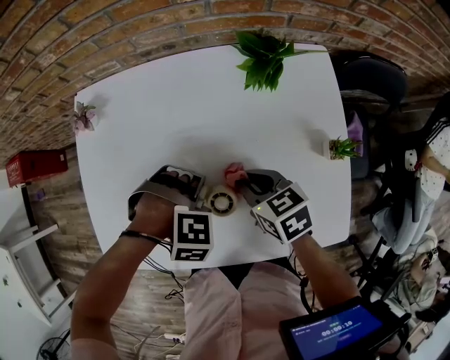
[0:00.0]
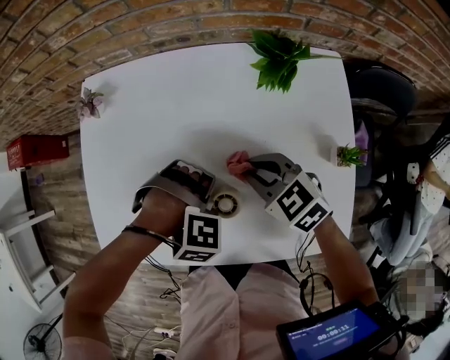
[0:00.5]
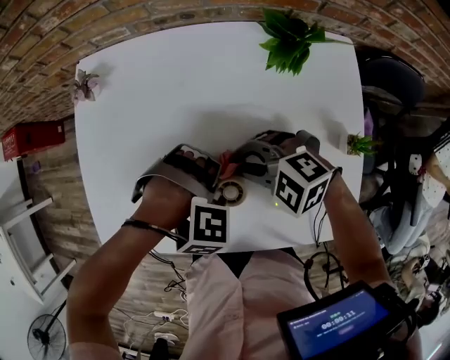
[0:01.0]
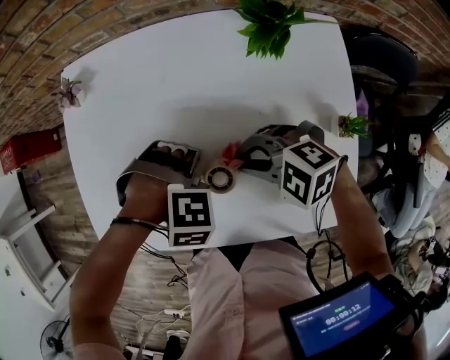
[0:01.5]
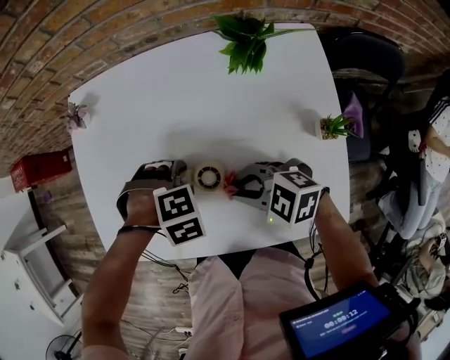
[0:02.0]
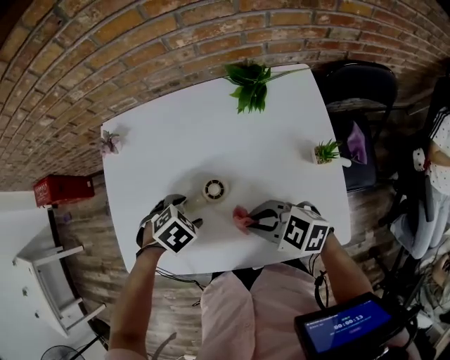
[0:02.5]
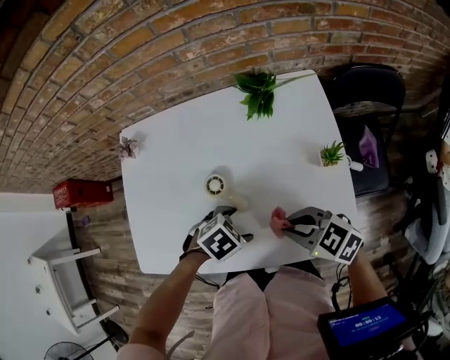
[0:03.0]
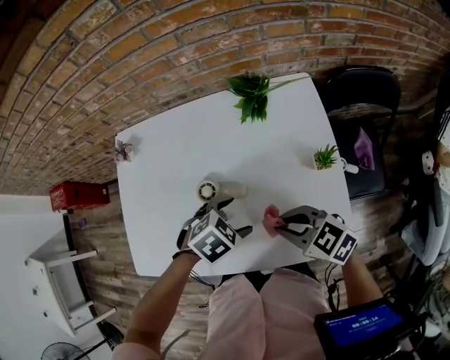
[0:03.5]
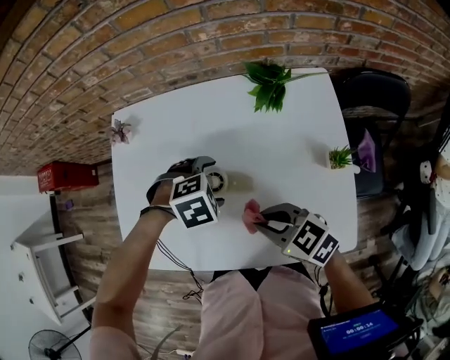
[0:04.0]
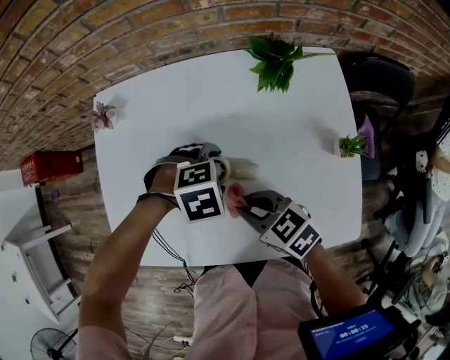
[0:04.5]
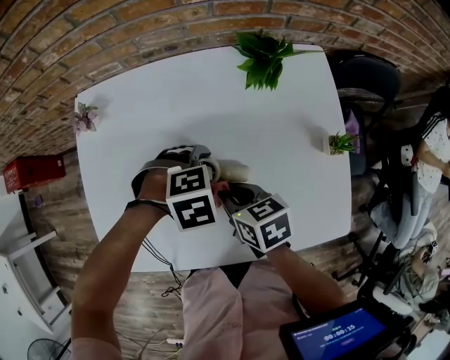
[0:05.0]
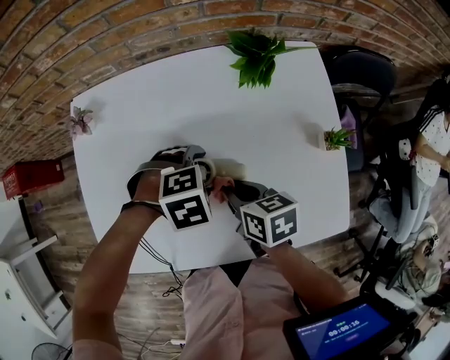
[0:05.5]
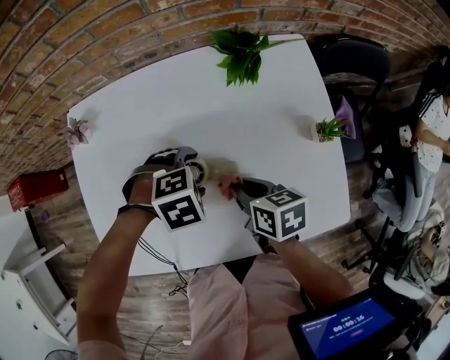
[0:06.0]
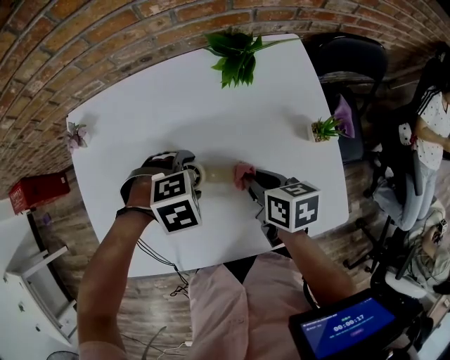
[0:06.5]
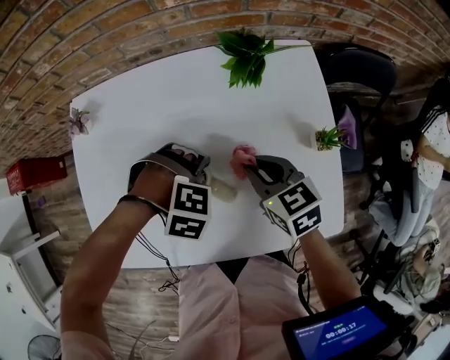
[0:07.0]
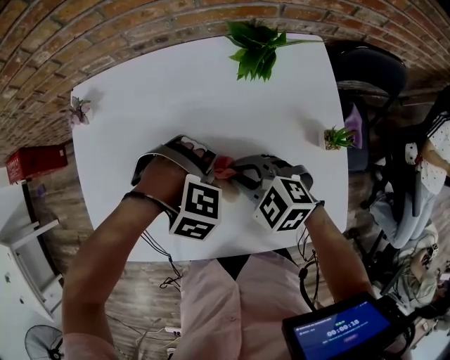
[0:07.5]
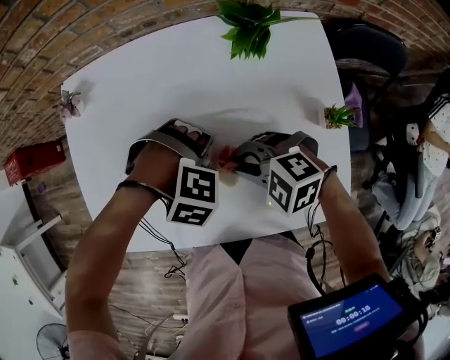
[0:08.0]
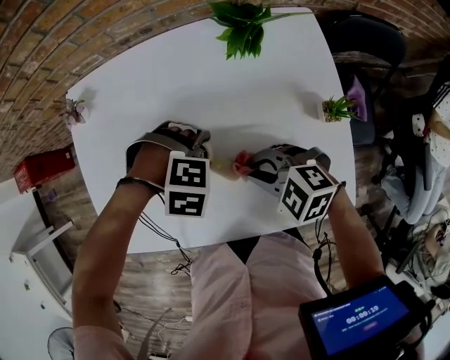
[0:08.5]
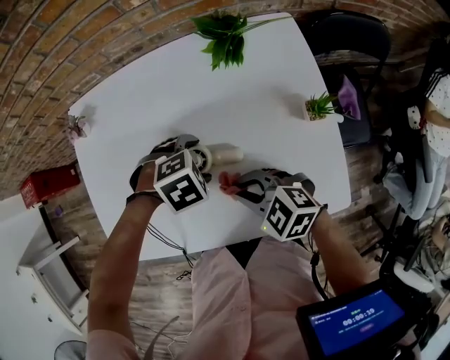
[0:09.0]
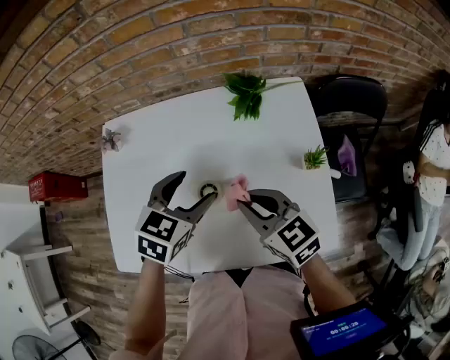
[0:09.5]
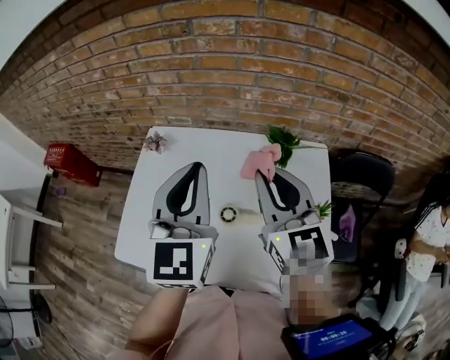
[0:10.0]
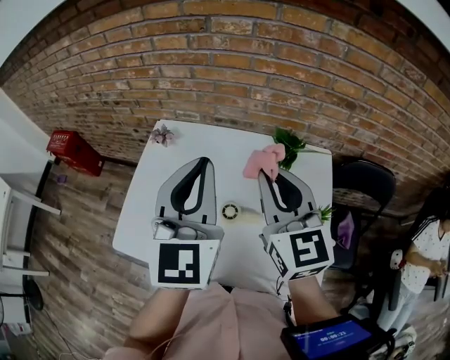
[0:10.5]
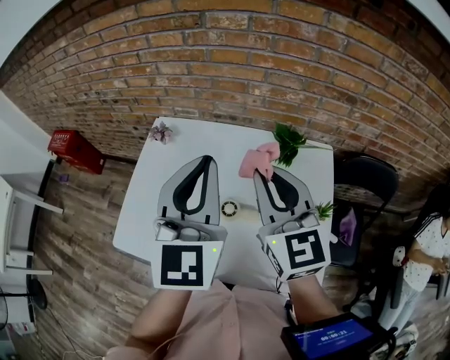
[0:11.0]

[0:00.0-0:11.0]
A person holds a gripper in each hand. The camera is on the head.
0:00.0 to 0:02.0: The right gripper changes place by about 10 cm, and rolls counterclockwise, seen from behind, by some 50 degrees. The left gripper turns by approximately 20 degrees.
0:02.0 to 0:03.5: The right gripper moves some 10 cm, and swivels approximately 30 degrees. Meanwhile the left gripper shifts by some 10 cm, rotates some 40 degrees, and opens up.
0:03.5 to 0:05.5: The left gripper shifts by about 10 cm, and turns by some 30 degrees; the right gripper changes place by approximately 15 cm, and rotates around the line of its fingers by approximately 40 degrees, clockwise from behind.
0:05.5 to 0:07.5: The left gripper rotates some 40 degrees. Meanwhile the right gripper rotates around the line of its fingers by roughly 70 degrees, counterclockwise from behind.
0:07.5 to 0:09.0: The right gripper shifts by approximately 10 cm. The left gripper twists roughly 40 degrees counterclockwise, seen from behind.
0:09.0 to 0:11.0: Both grippers travel together upward, roughly 35 cm. The right gripper angles its fingers upward, by some 40 degrees. The left gripper tips its fingers upward by some 80 degrees, and closes.

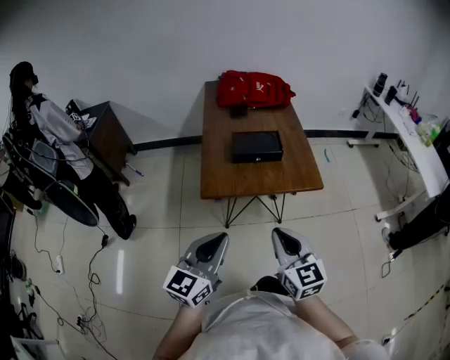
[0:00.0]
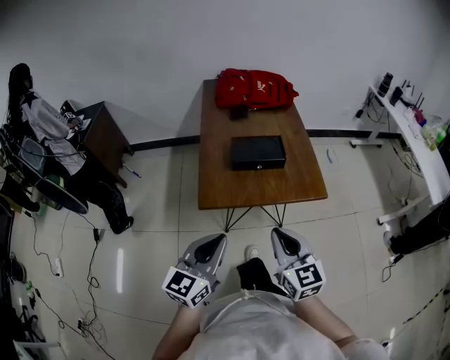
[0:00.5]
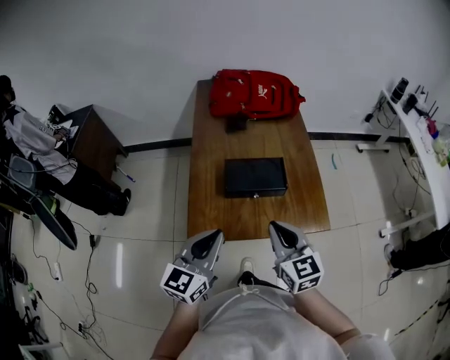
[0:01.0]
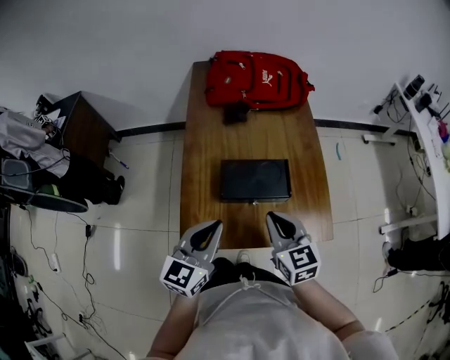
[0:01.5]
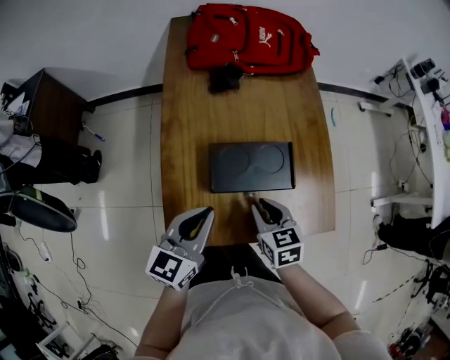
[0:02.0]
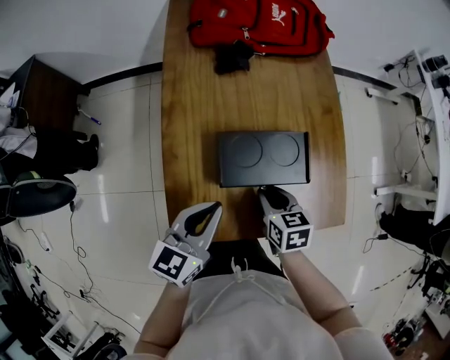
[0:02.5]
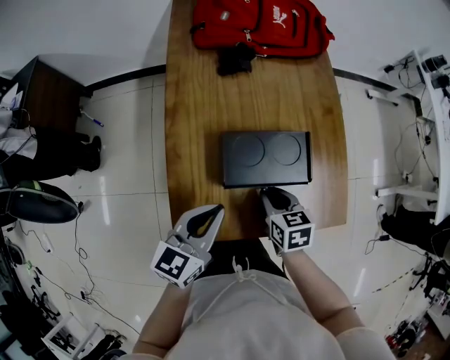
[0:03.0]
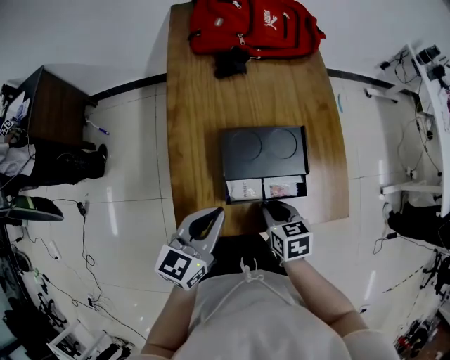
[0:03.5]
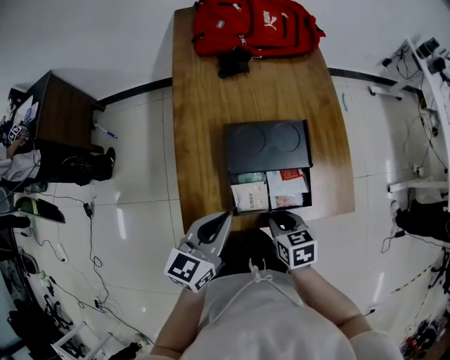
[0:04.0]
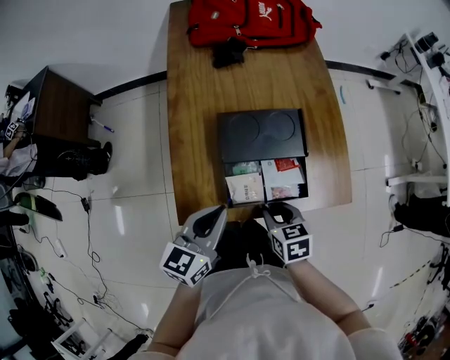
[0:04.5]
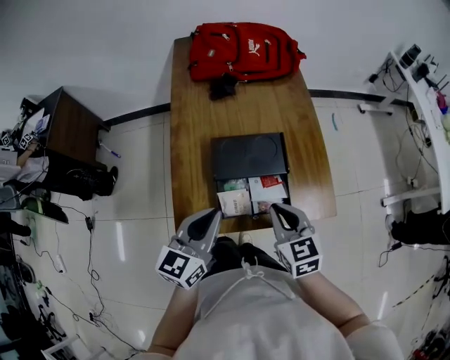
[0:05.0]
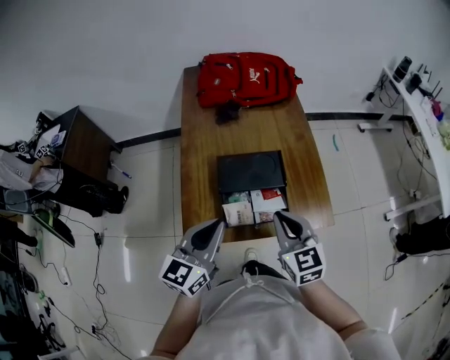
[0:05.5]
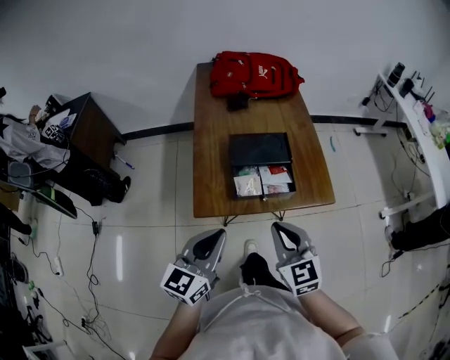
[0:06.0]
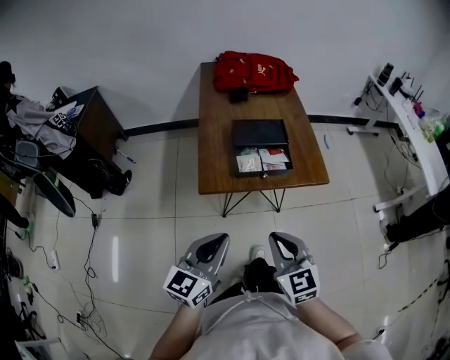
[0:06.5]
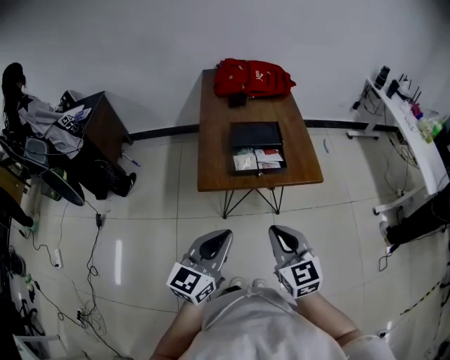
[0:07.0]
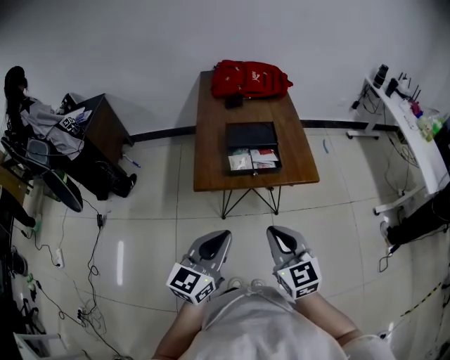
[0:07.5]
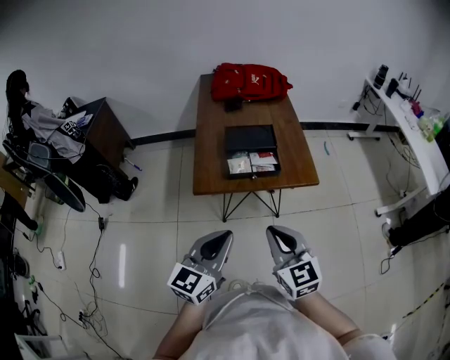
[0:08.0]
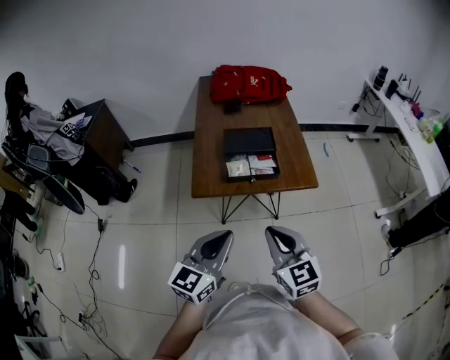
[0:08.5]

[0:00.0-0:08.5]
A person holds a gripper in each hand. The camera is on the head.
0:00.0 to 0:02.0: The right gripper moves forward and downward, some 40 cm, and tips its fingers downward by some 30 degrees; the left gripper travels forward by some 40 cm.
0:02.0 to 0:04.0: The right gripper is displaced backward and downward by approximately 10 cm. Meanwhile the left gripper heads backward, covering roughly 5 cm.
0:04.0 to 0:06.5: The right gripper is displaced backward and upward by approximately 35 cm, and angles its fingers upward, by approximately 30 degrees; the left gripper heads backward, covering roughly 30 cm.
0:06.5 to 0:08.5: The two grippers go approximately 5 cm to the right.

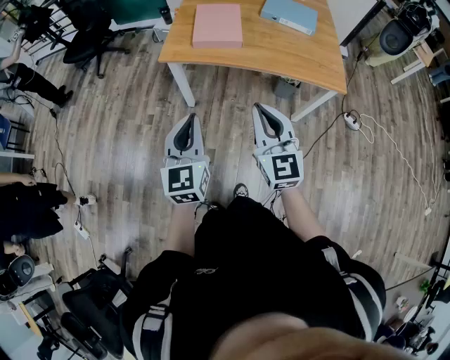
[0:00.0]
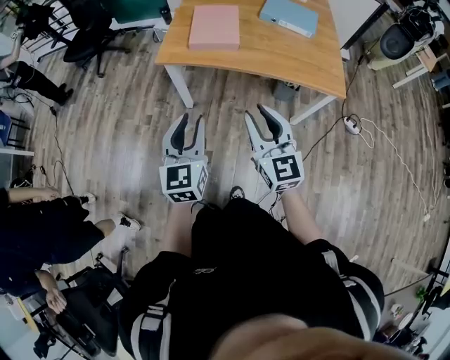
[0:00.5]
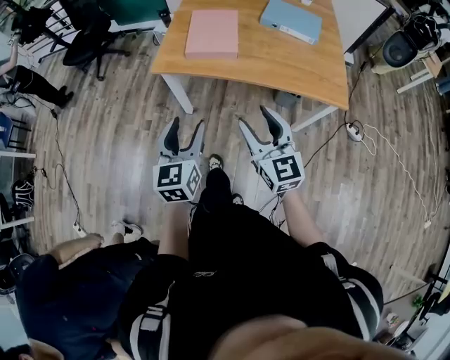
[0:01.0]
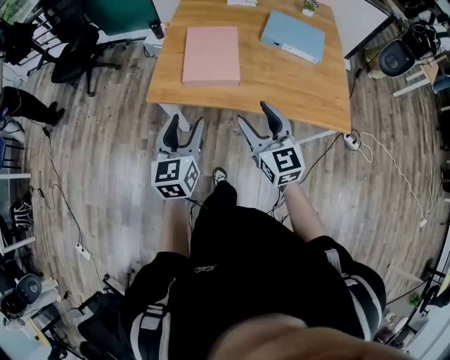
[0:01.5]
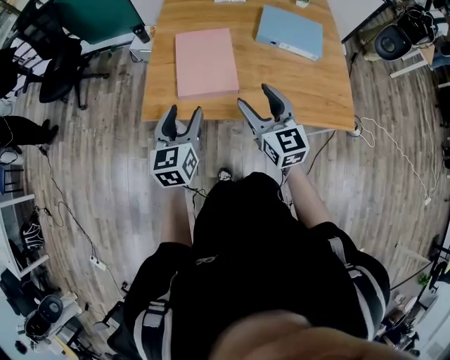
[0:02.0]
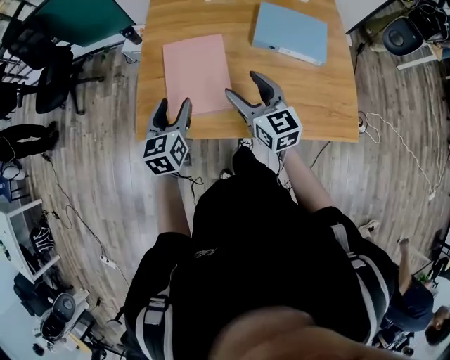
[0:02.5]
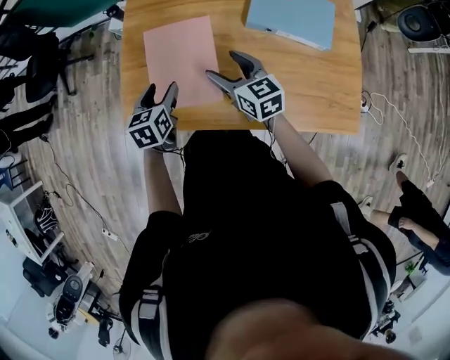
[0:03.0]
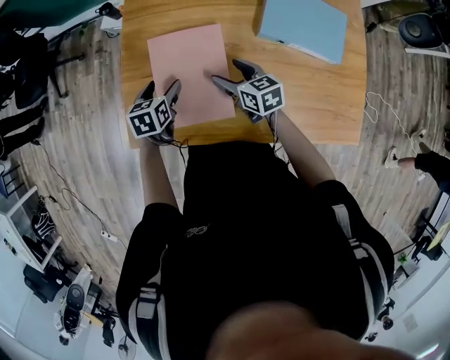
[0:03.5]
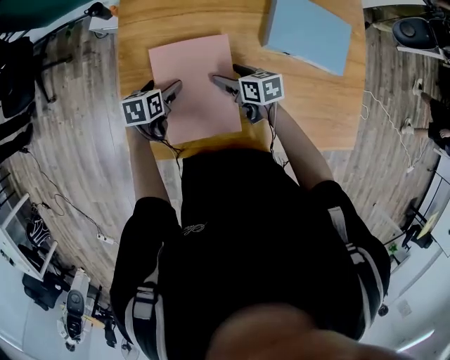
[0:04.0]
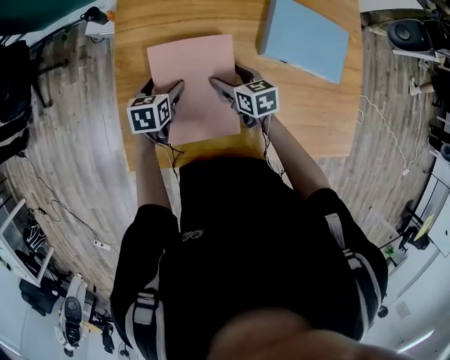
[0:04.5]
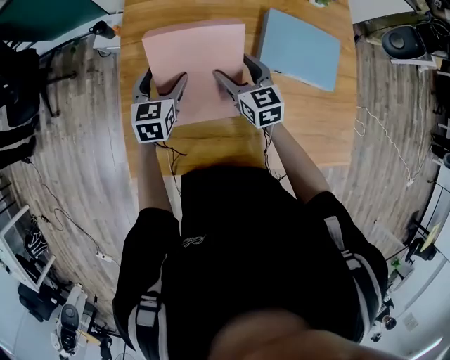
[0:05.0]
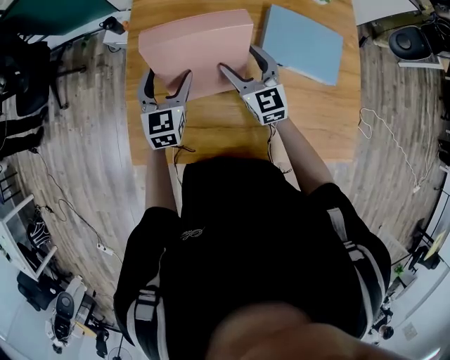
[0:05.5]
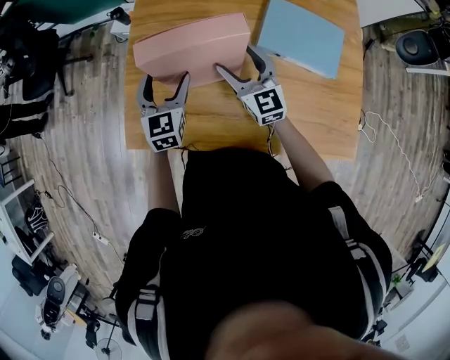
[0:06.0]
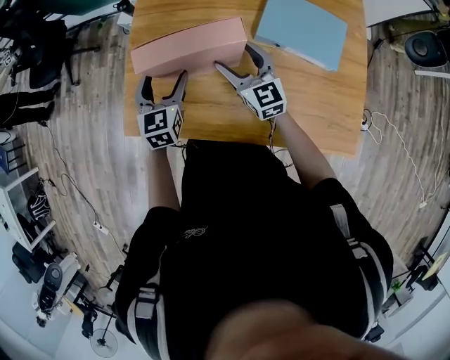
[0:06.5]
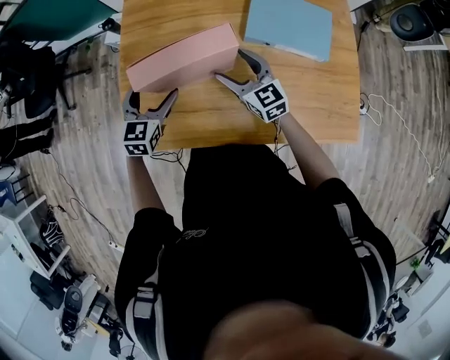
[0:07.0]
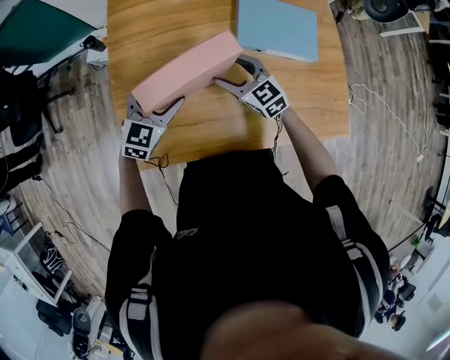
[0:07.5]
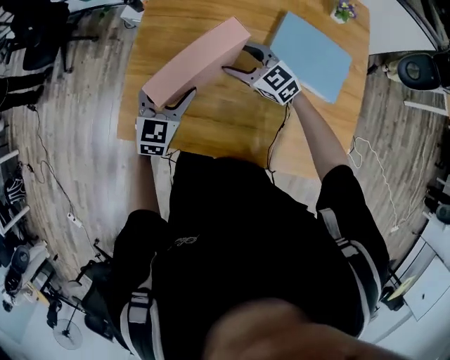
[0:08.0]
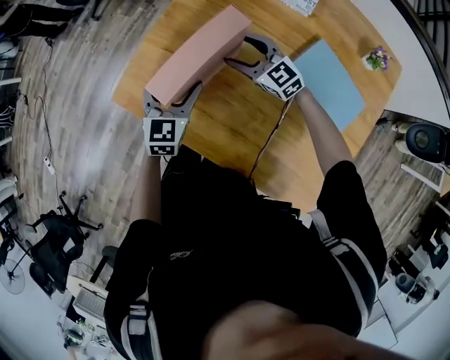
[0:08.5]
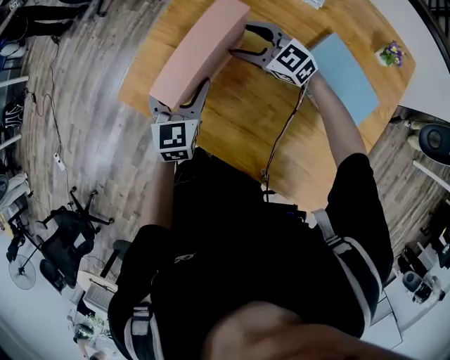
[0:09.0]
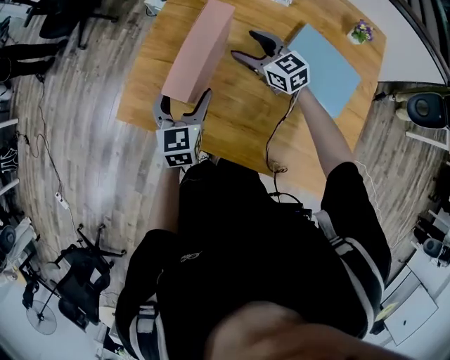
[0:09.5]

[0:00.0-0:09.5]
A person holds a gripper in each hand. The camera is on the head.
0:00.0 to 0:02.0: Both grippers move forward, roughly 35 cm. The left gripper opens its fingers, while the right gripper opens its fingers.
0:02.0 to 0:04.0: The two grippers go approximately 40 cm forward and downward. The left gripper tilts its fingers some 40 degrees downward, while the right gripper angles its fingers downward, by approximately 30 degrees.
0:04.0 to 0:05.5: The grippers both shift upward by some 15 cm. The right gripper turns by about 60 degrees, while the left gripper angles its fingers upward, by about 30 degrees.
0:05.5 to 0:07.5: The two grippers go approximately 5 cm backward. The left gripper turns by about 40 degrees.
0:07.5 to 0:09.5: The right gripper shifts by approximately 10 cm, and changes its angle by about 30 degrees. The left gripper ends up about 10 cm from where it was, and turns by some 60 degrees.
